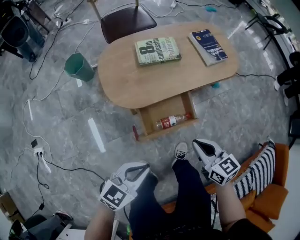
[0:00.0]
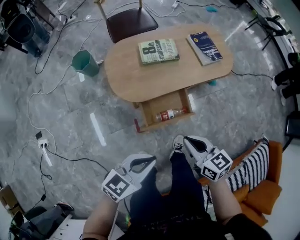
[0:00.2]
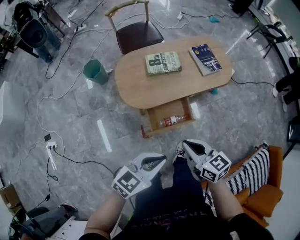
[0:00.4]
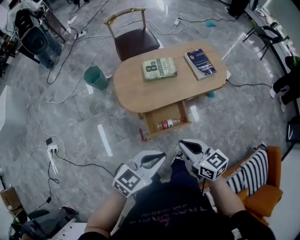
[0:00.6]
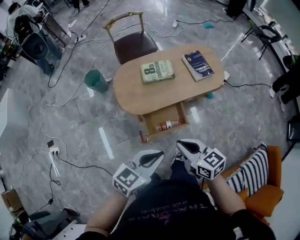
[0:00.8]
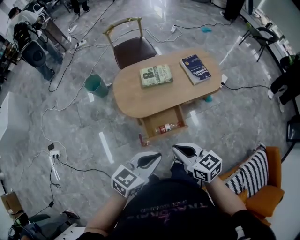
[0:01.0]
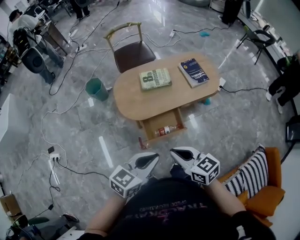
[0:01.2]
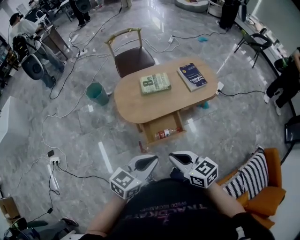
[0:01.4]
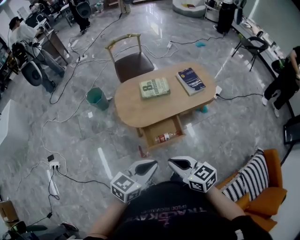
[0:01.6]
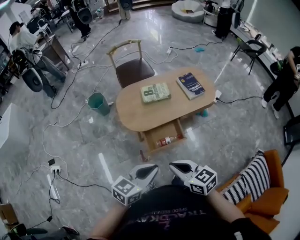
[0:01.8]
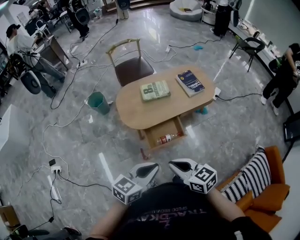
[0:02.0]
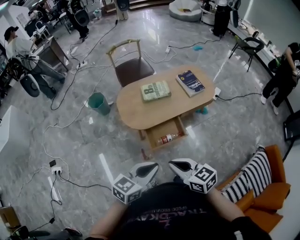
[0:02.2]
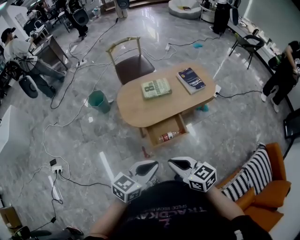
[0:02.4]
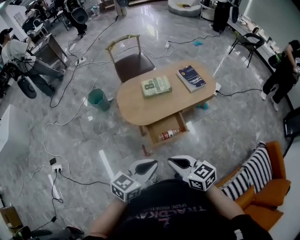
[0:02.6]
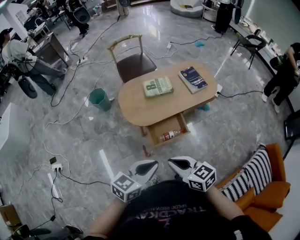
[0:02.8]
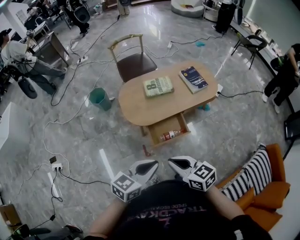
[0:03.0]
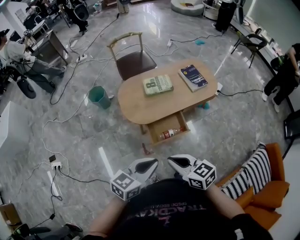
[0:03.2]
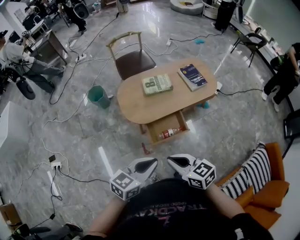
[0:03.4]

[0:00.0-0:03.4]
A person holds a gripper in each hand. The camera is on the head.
0.0 to 1.6 s: The left gripper moves upward, some 25 cm; the right gripper goes some 30 cm upward and backward.
1.6 to 3.4 s: The right gripper ends up roughly 5 cm from where it was.

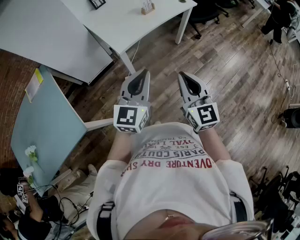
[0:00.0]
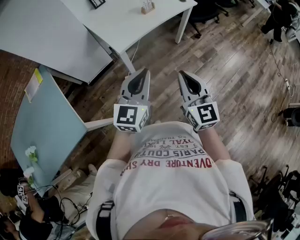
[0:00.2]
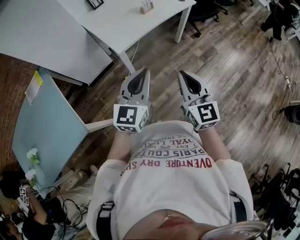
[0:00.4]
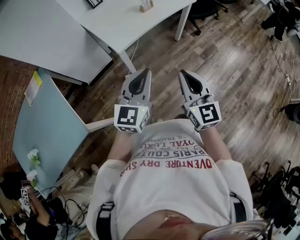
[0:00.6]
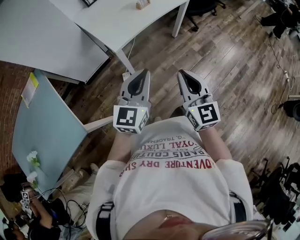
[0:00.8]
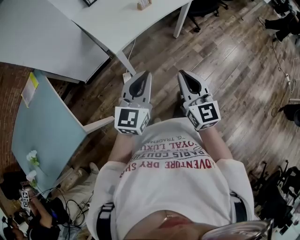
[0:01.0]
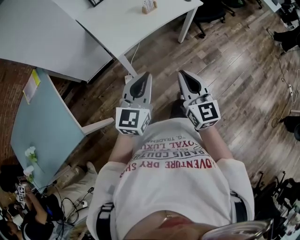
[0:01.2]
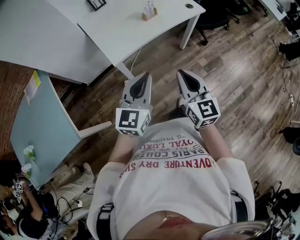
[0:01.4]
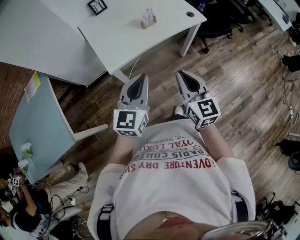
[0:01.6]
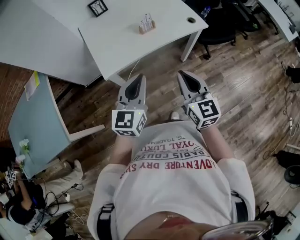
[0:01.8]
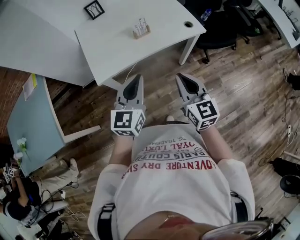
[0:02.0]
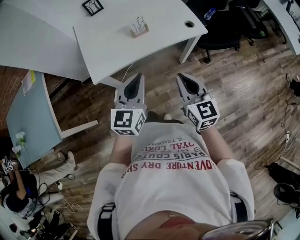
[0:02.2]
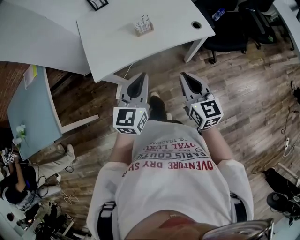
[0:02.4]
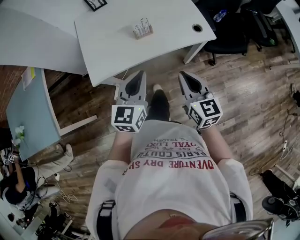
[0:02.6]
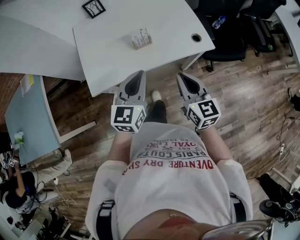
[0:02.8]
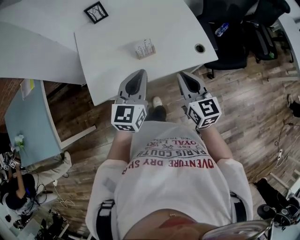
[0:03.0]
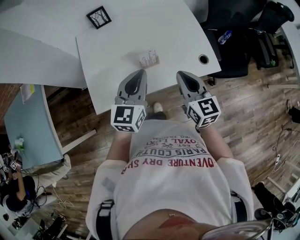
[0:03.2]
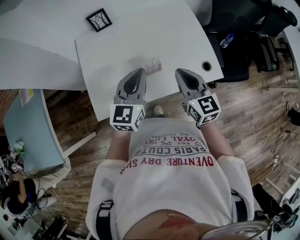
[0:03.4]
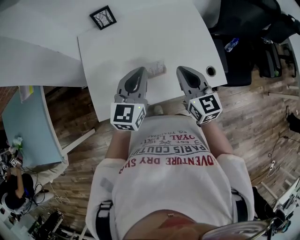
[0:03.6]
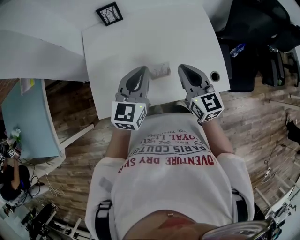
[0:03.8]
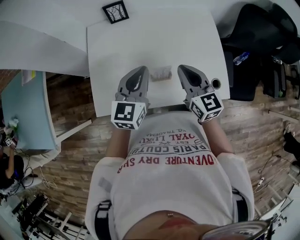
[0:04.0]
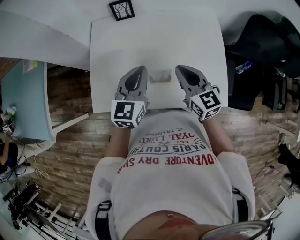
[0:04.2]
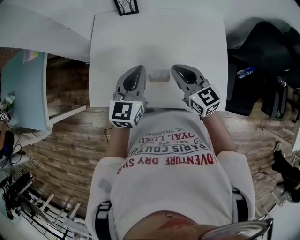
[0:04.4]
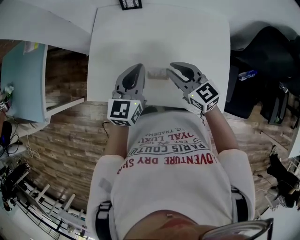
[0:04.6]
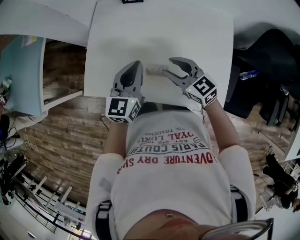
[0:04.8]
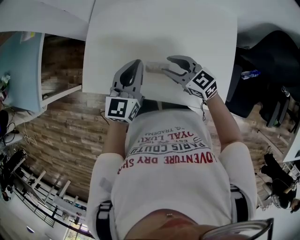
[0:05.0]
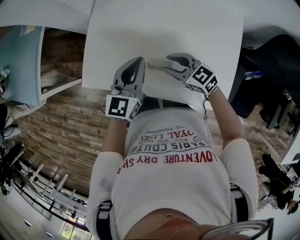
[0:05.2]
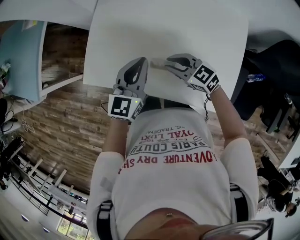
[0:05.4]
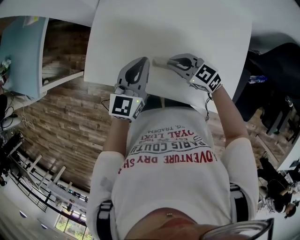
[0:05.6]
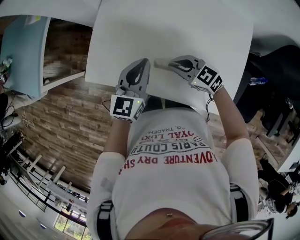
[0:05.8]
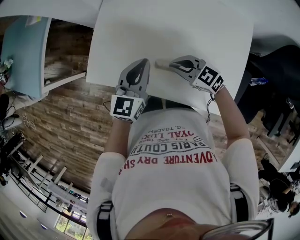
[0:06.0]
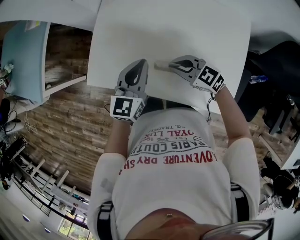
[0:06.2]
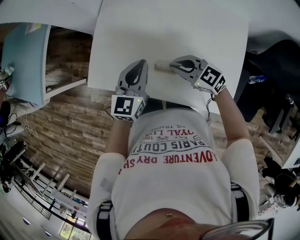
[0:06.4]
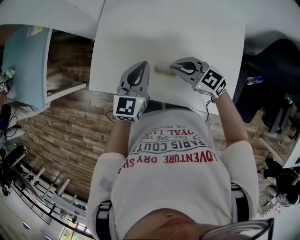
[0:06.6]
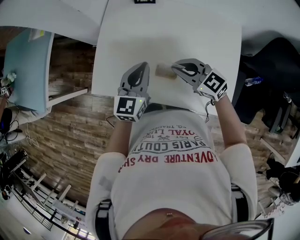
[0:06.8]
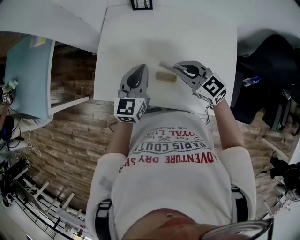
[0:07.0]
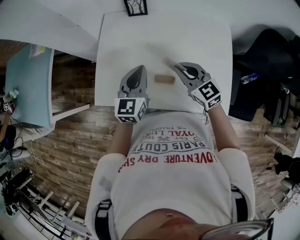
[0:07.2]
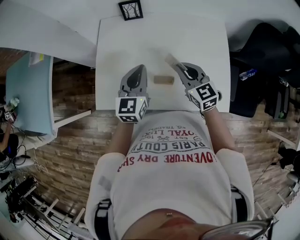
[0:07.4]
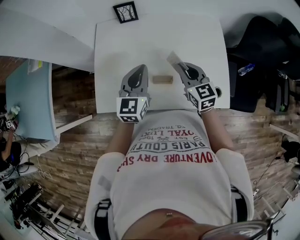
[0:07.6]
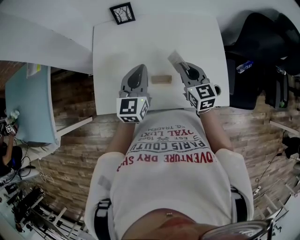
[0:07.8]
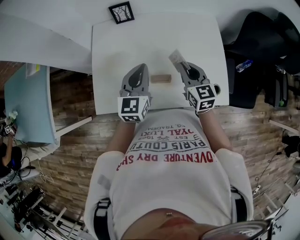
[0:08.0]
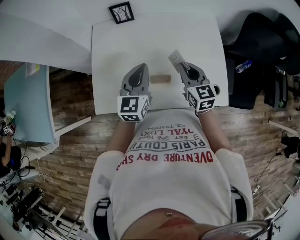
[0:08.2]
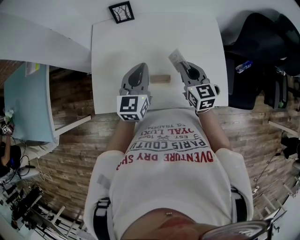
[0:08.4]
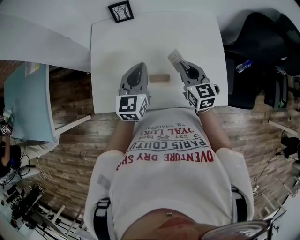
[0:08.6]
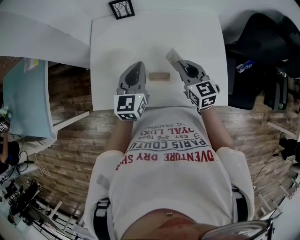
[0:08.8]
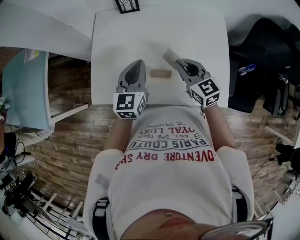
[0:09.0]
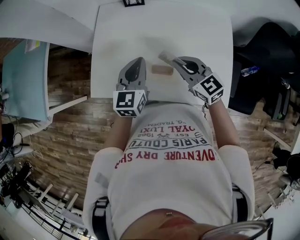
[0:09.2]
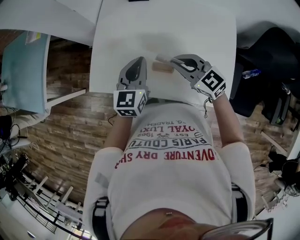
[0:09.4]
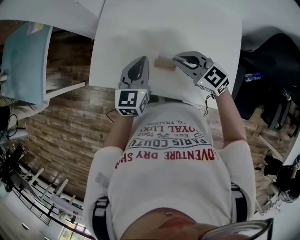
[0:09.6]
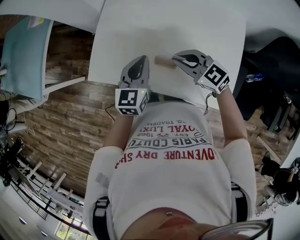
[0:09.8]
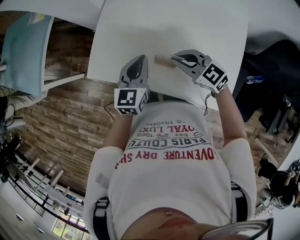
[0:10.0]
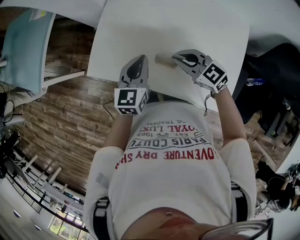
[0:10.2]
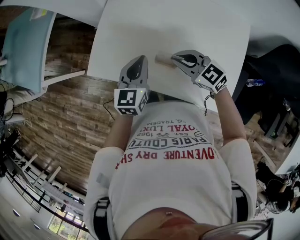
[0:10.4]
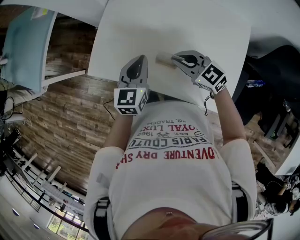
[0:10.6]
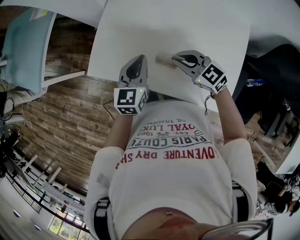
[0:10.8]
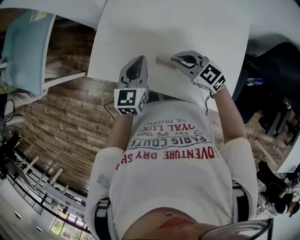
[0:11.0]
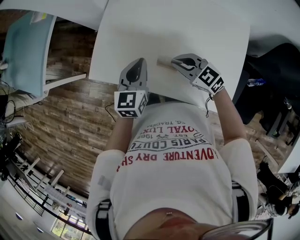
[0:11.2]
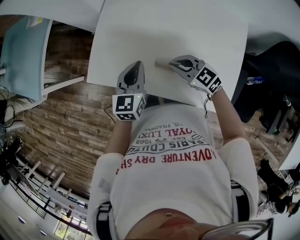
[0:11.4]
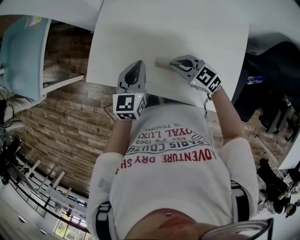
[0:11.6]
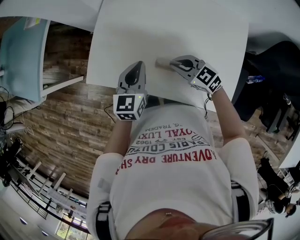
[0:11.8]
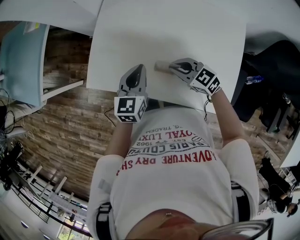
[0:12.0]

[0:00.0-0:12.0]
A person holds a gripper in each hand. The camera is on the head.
0.0 to 1.6 s: Both grippers travel together forward and to the right, some 20 cm.
1.6 to 3.0 s: Both grippers move forward and to the right, some 30 cm.
3.0 to 4.4 s: The right gripper moves roughly 25 cm, and changes its angle by approximately 40 degrees; the left gripper changes place by roughly 20 cm, and rotates roughly 20 degrees.
4.4 to 6.0 s: The left gripper travels downward by roughly 5 cm; the right gripper moves downward, about 10 cm, changes its angle by roughly 40 degrees, and opens, then closes again.
6.0 to 7.6 s: The left gripper heads upward, covering some 5 cm; the right gripper travels upward by some 10 cm, and rotates approximately 60 degrees.
7.6 to 9.0 s: The grippers move only a little.
9.0 to 10.4 s: The left gripper changes place by approximately 5 cm, while the right gripper ends up about 5 cm from where it was, and turns by some 40 degrees.
10.4 to 12.0 s: The right gripper goes about 5 cm downward.

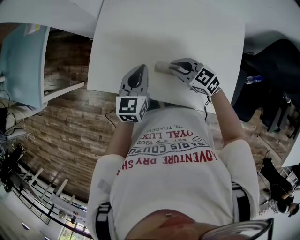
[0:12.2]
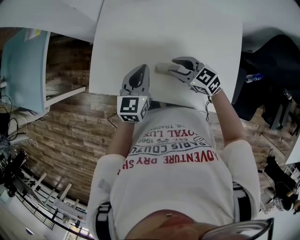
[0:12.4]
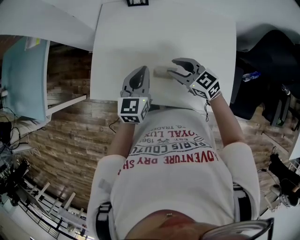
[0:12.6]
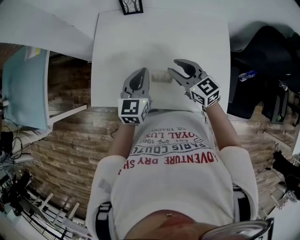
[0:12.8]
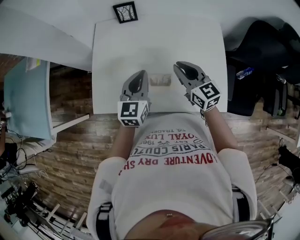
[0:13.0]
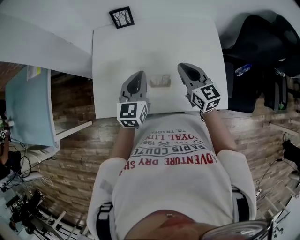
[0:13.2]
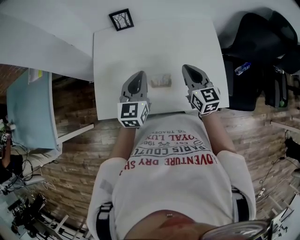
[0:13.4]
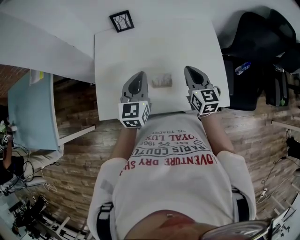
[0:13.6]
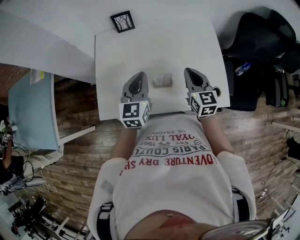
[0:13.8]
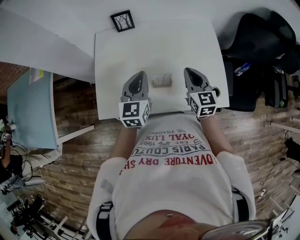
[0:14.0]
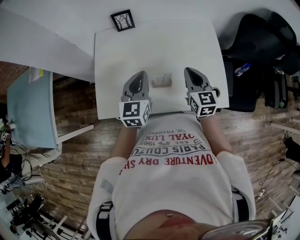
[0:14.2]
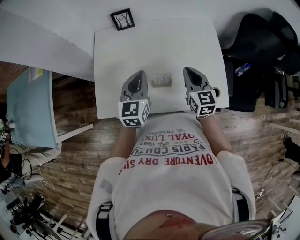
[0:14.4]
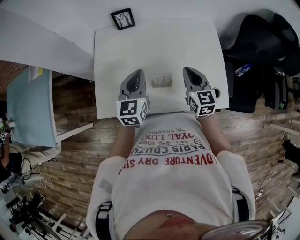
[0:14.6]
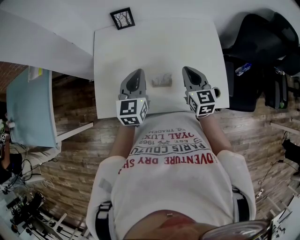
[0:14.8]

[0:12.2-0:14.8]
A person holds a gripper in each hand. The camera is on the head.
12.2 to 13.4 s: The left gripper travels upward by approximately 5 cm. The right gripper moves upward, about 10 cm, turns by approximately 60 degrees, and opens and closes again.
13.4 to 14.8 s: There are only small adjustments of the grippers.

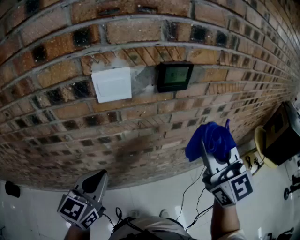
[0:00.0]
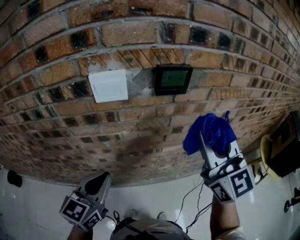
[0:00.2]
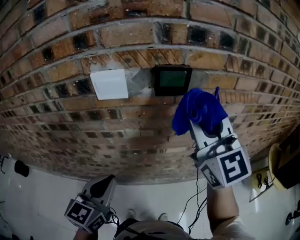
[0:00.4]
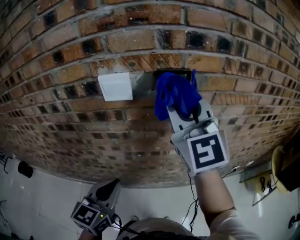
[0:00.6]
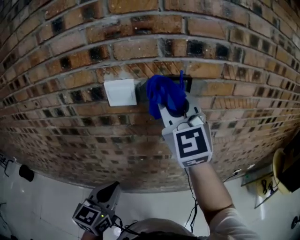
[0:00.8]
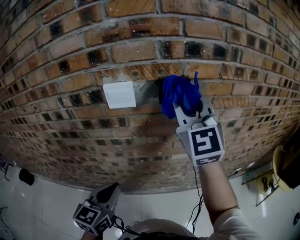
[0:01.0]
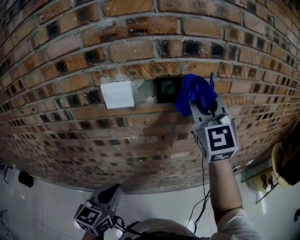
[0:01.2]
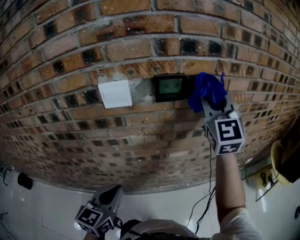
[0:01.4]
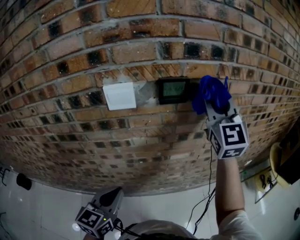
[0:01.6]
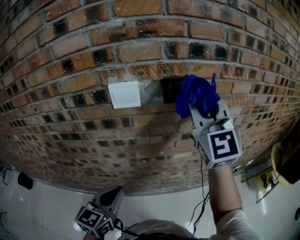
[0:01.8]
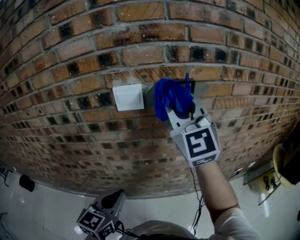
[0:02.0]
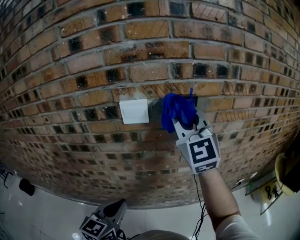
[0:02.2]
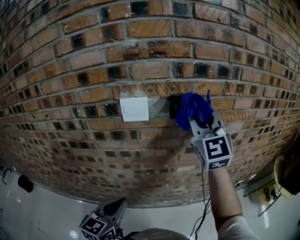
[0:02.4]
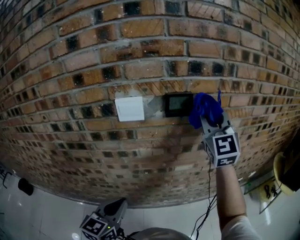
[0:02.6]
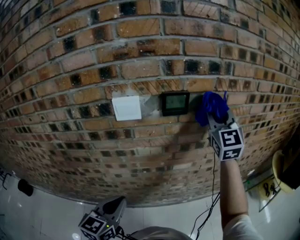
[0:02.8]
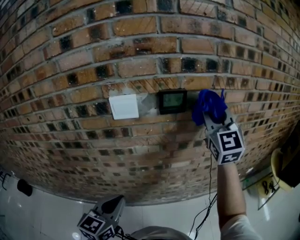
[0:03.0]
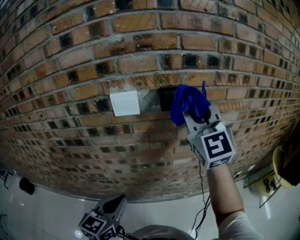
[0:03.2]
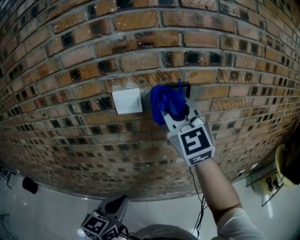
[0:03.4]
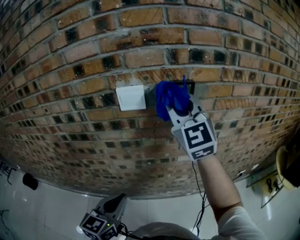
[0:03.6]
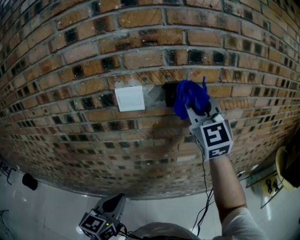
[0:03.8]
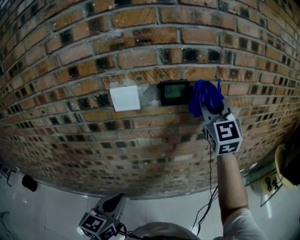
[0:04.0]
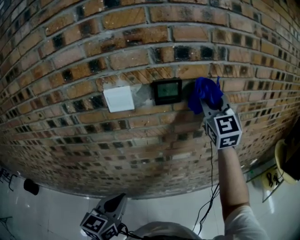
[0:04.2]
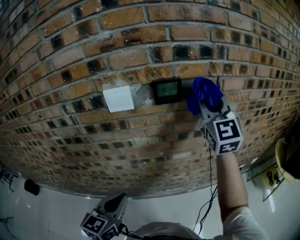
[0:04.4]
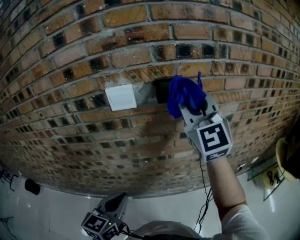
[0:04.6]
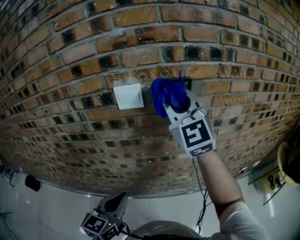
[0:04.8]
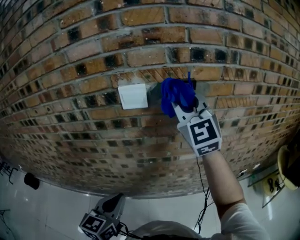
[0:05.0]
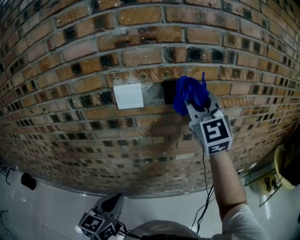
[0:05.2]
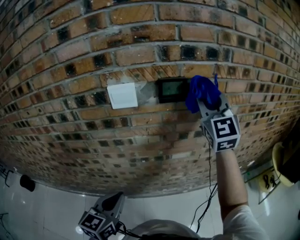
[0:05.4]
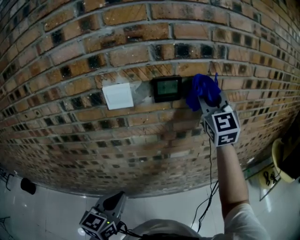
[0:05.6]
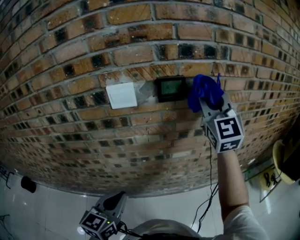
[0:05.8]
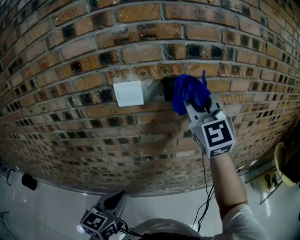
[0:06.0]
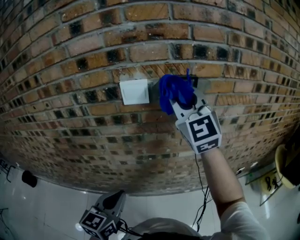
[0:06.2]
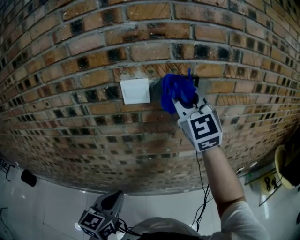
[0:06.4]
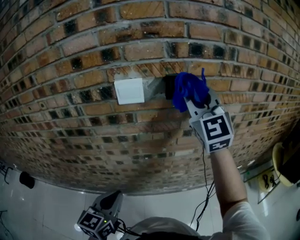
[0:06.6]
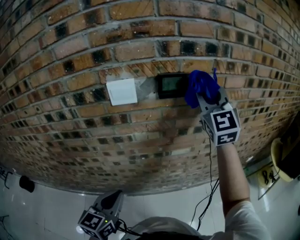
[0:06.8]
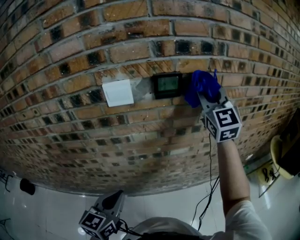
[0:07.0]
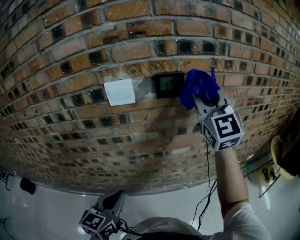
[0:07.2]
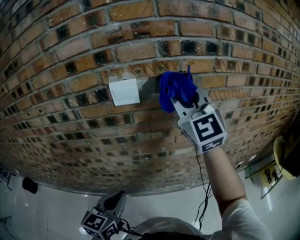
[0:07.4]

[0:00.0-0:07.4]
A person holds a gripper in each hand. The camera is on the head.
0.0 to 1.4 s: The left gripper shifts roughly 10 cm to the right and backward, while the right gripper goes roughly 15 cm forward, upward and to the right.
1.4 to 3.0 s: The right gripper moves about 15 cm to the left and comes back.
3.0 to 4.4 s: The right gripper moves approximately 15 cm to the left and comes back.
4.4 to 6.0 s: The right gripper goes left and right, roughly 15 cm each way, reversing 2 times.
6.0 to 7.4 s: The right gripper swings left and right, about 15 cm each way, with 2 reversals.
